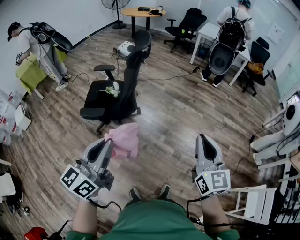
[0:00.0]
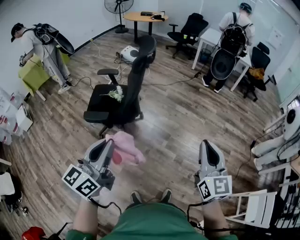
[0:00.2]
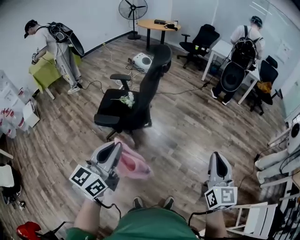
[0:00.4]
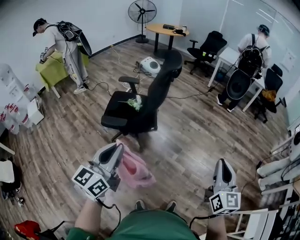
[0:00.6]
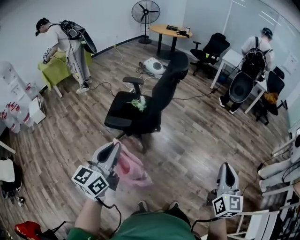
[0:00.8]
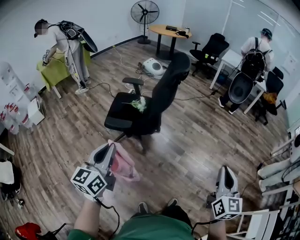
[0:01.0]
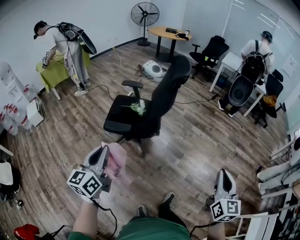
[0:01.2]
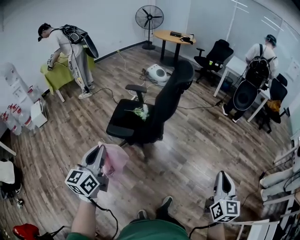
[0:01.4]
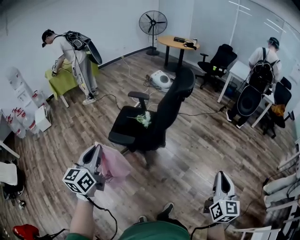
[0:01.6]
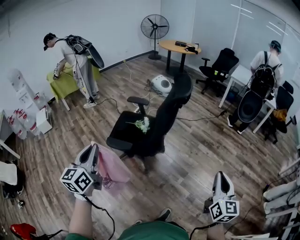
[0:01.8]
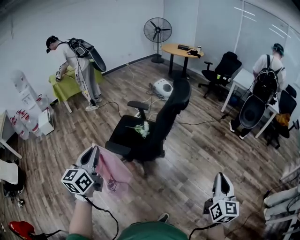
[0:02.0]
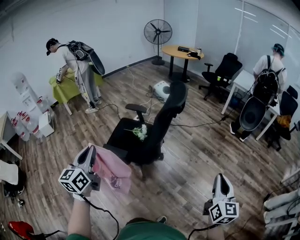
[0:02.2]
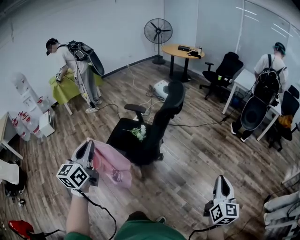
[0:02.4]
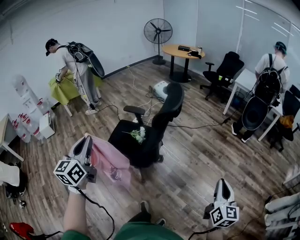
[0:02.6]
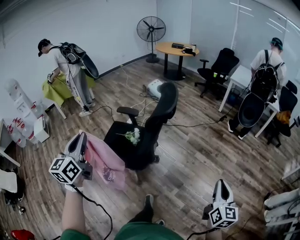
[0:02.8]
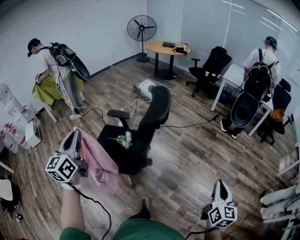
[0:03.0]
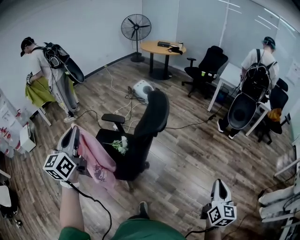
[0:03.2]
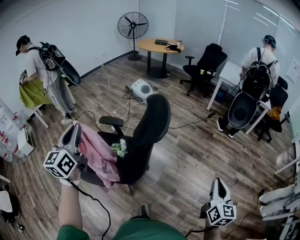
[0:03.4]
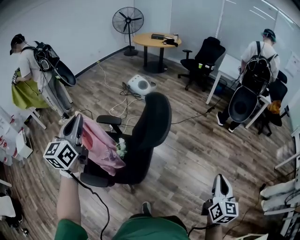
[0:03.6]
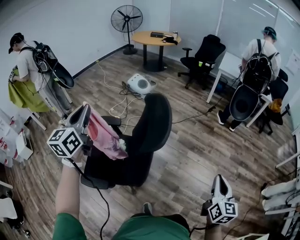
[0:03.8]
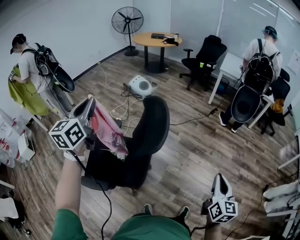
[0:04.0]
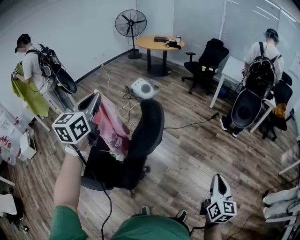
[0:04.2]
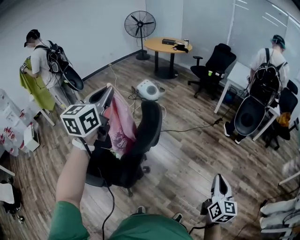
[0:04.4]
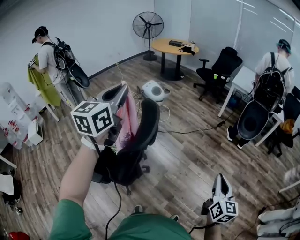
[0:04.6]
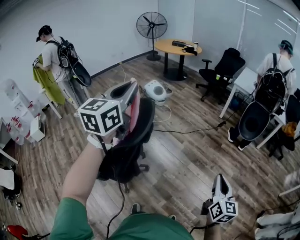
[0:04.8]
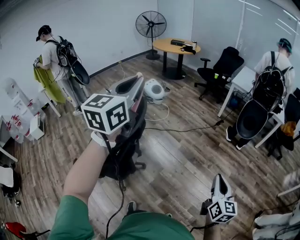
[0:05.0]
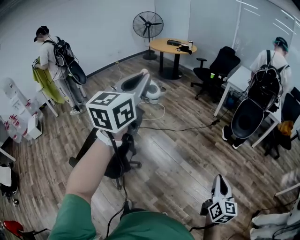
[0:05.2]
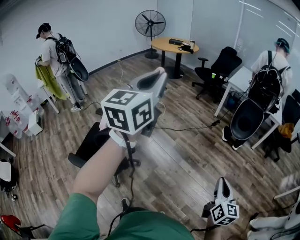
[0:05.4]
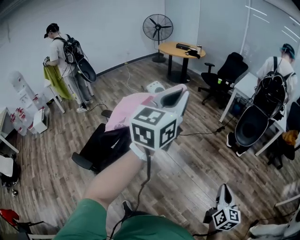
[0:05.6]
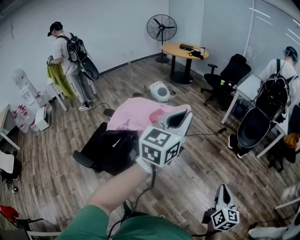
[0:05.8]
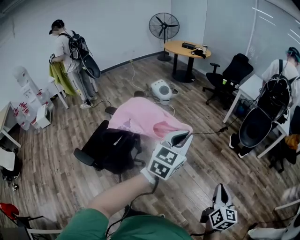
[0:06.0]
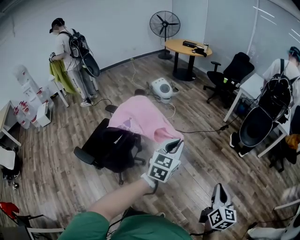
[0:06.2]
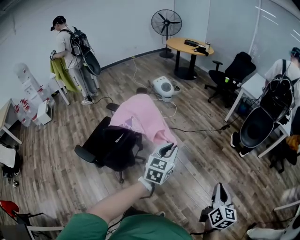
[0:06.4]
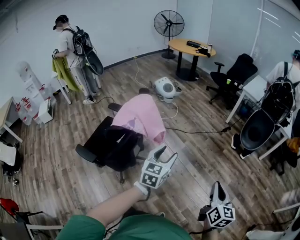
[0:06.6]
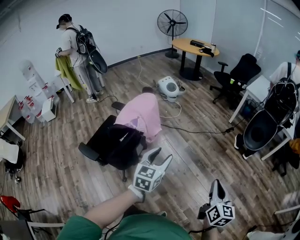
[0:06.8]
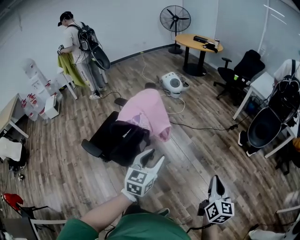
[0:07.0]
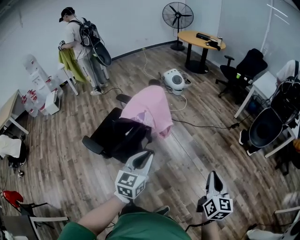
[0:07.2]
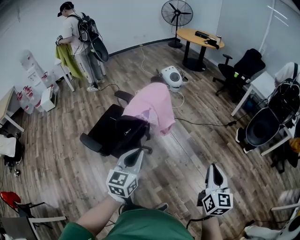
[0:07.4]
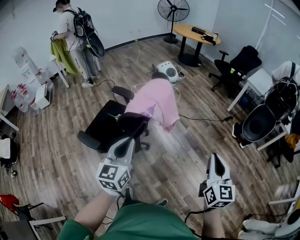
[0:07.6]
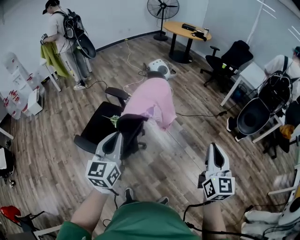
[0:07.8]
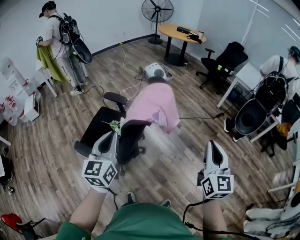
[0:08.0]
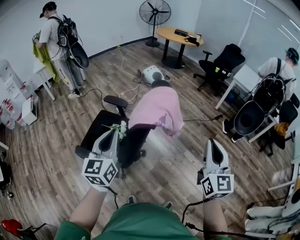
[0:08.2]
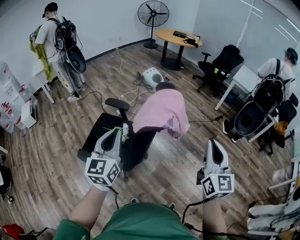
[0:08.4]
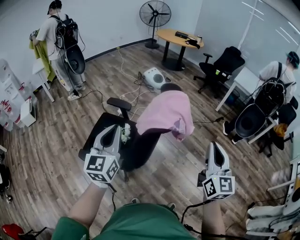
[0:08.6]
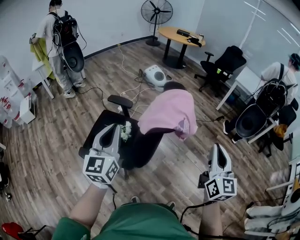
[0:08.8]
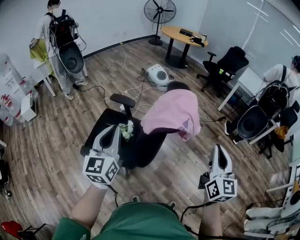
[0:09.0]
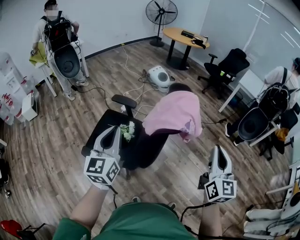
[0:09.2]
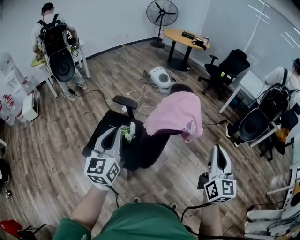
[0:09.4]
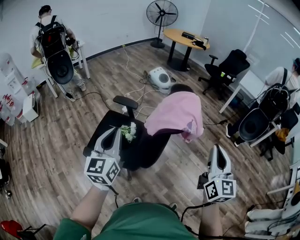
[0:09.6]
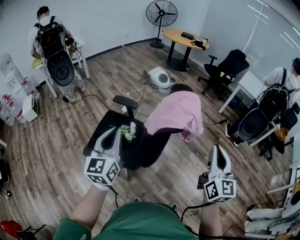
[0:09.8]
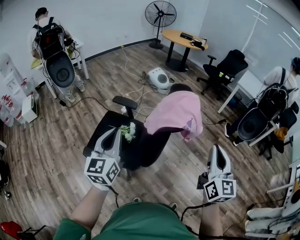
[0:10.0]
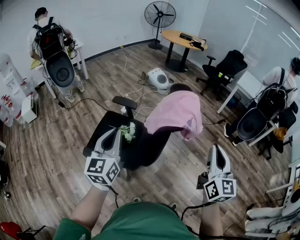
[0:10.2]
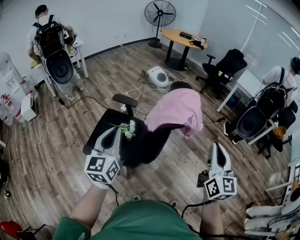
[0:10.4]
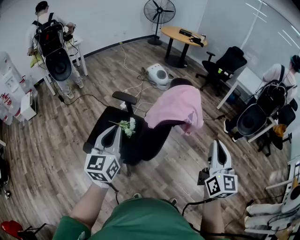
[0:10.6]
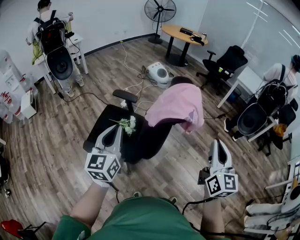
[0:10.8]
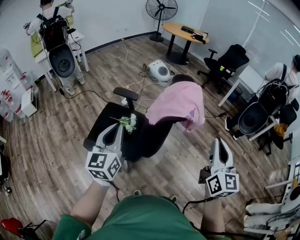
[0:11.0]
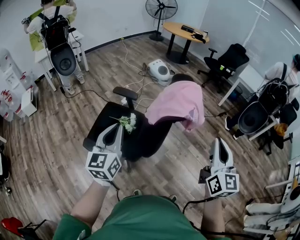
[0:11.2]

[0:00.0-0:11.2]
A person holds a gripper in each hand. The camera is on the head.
0:00.0 to 0:01.6: The right gripper ends up roughly 10 cm from where it was. The left gripper travels to the left by some 25 cm, and rotates approximately 30 degrees.
0:01.6 to 0:03.2: The left gripper travels forward by roughly 35 cm. Meanwhile the right gripper moves forward and to the right, about 30 cm.
0:03.2 to 0:04.8: The right gripper moves forward and to the right, approximately 20 cm; the left gripper heads to the right and forward, covering approximately 40 cm.
0:04.8 to 0:06.4: The right gripper moves to the right, some 10 cm, while the left gripper heads downward and to the right, covering about 40 cm, and changes its angle by about 20 degrees.
0:06.4 to 0:08.0: The right gripper shifts roughly 30 cm to the left and upward, and changes its angle by roughly 30 degrees, while the left gripper shifts roughly 40 cm to the left, rotates roughly 20 degrees, and opens, then closes again.
0:08.0 to 0:09.6: Both grippers move to the left, some 15 cm.
0:09.6 to 0:11.2: The grippers make only small movements.

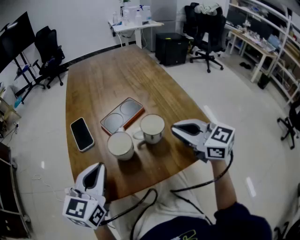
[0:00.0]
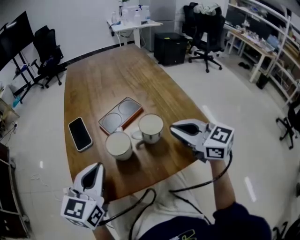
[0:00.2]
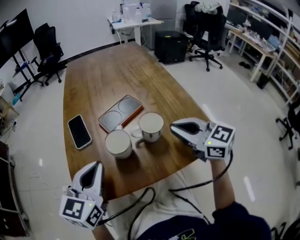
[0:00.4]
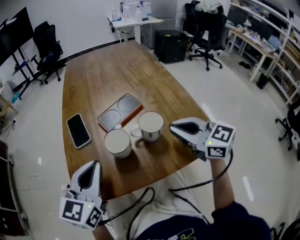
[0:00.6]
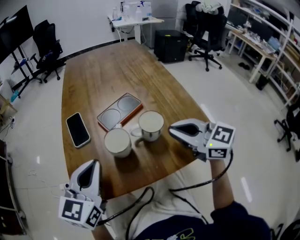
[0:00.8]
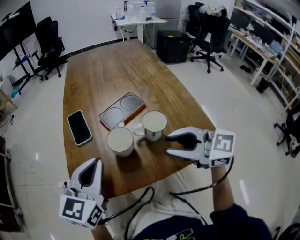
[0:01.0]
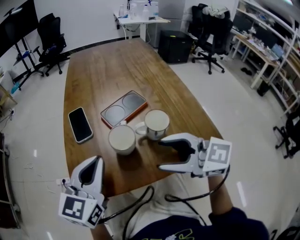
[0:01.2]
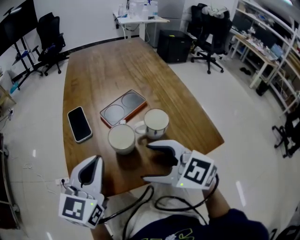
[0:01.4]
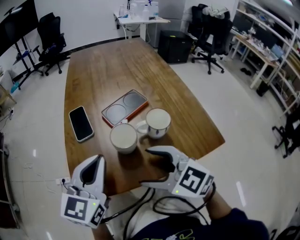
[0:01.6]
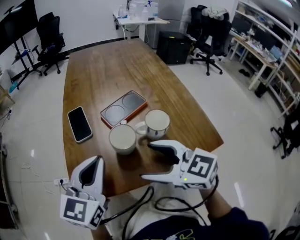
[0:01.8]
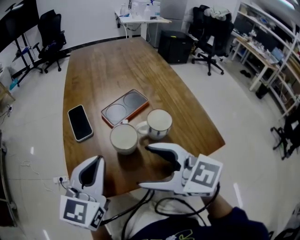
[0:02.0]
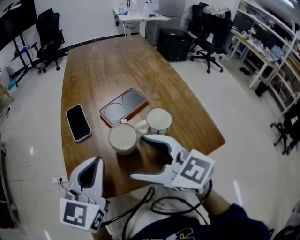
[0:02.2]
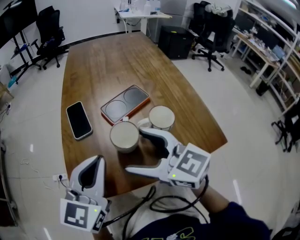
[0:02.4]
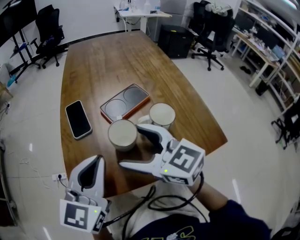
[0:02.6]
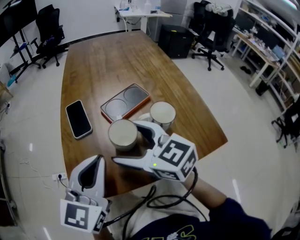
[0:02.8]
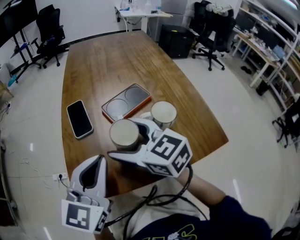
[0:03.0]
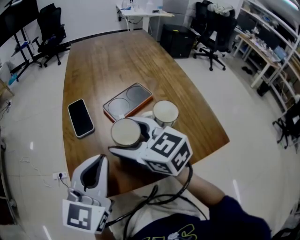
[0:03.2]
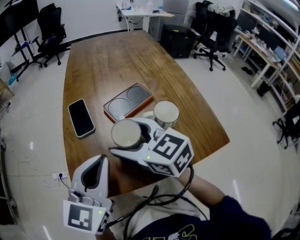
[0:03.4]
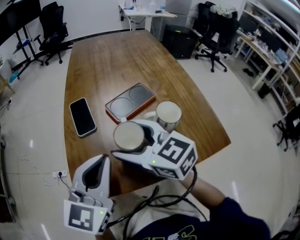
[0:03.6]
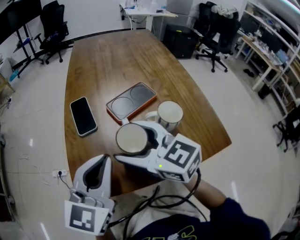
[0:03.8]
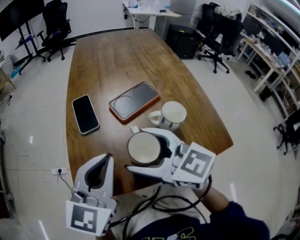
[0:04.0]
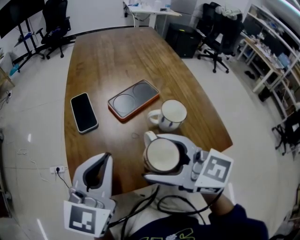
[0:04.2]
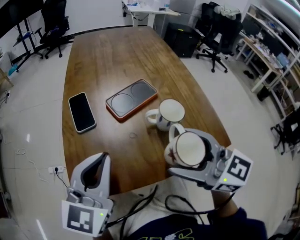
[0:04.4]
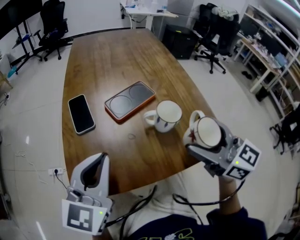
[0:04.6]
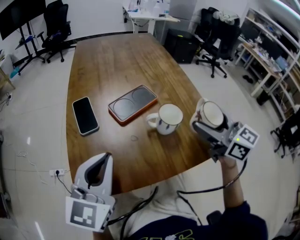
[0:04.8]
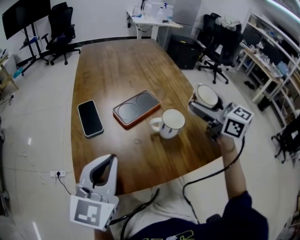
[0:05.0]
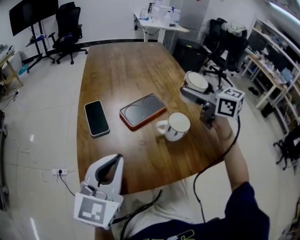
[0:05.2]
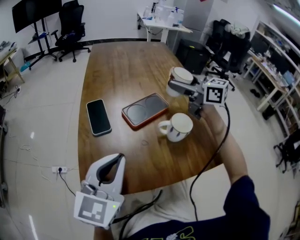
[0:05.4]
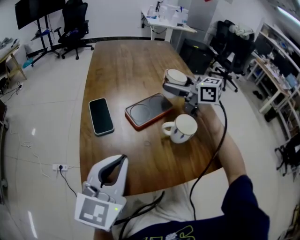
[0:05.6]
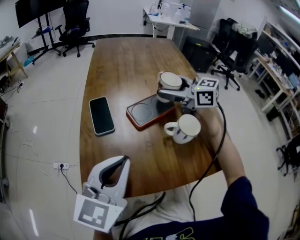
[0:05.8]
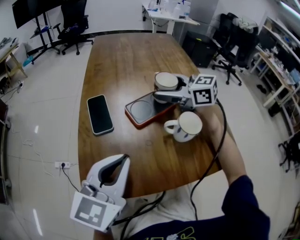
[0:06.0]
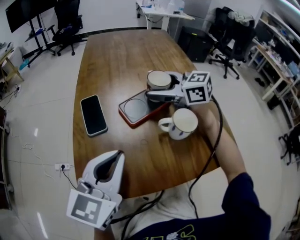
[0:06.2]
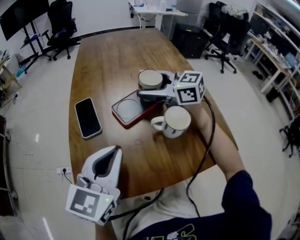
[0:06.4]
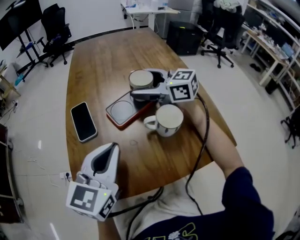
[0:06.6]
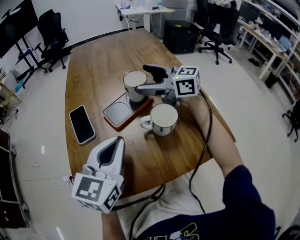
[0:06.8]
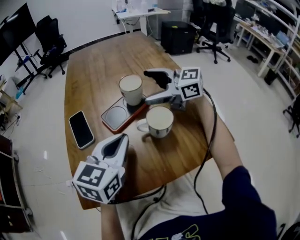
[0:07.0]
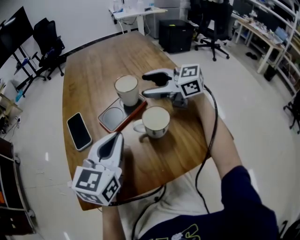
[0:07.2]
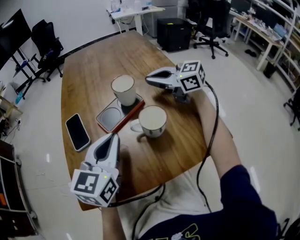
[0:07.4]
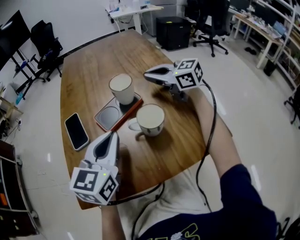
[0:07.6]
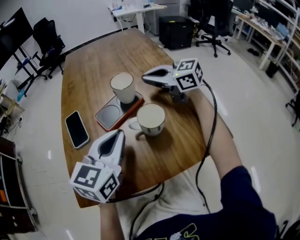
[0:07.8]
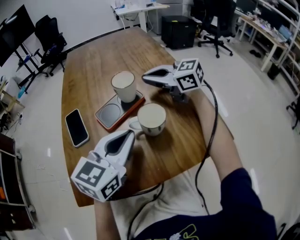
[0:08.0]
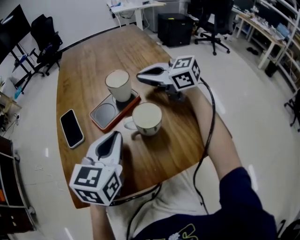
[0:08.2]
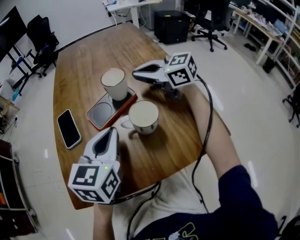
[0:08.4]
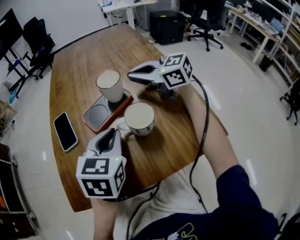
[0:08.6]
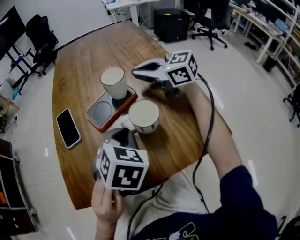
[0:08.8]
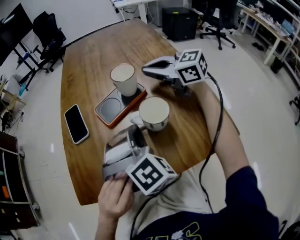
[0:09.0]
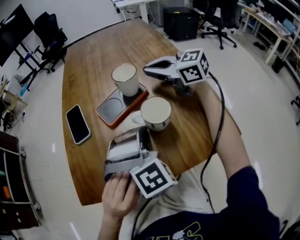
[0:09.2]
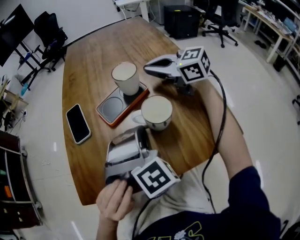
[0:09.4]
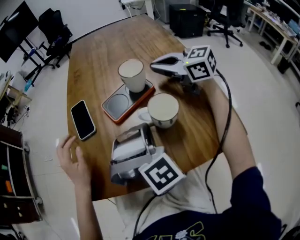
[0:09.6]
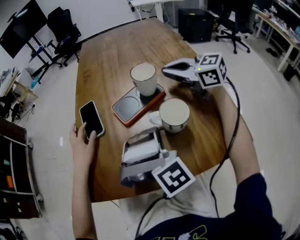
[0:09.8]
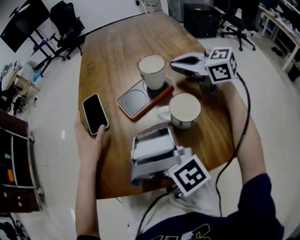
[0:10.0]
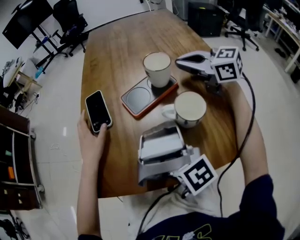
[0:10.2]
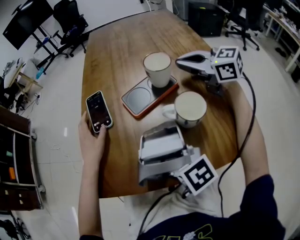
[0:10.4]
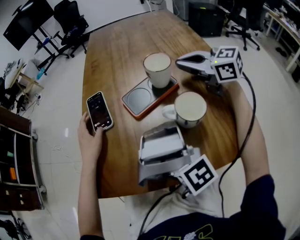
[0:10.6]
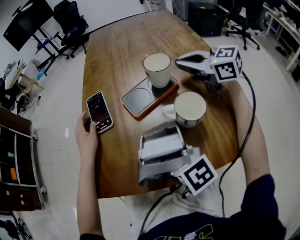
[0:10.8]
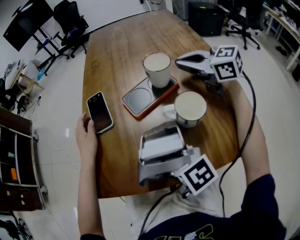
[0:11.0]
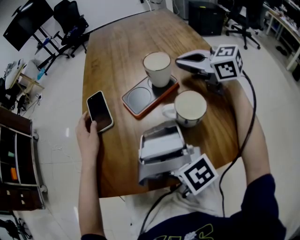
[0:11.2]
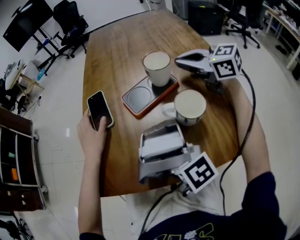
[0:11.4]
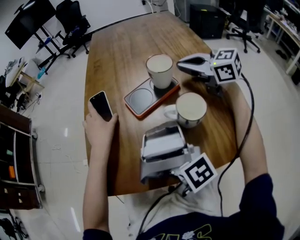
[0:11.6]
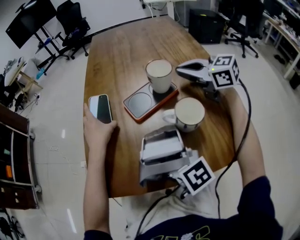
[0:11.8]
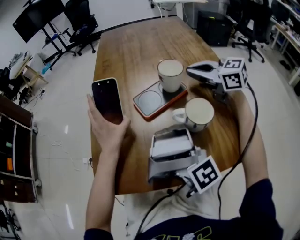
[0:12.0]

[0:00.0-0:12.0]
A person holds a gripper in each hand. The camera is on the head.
0:00.0 to 0:01.6: The right gripper shifts approximately 20 cm to the left and backward, changes its angle by roughly 30 degrees, and opens up.
0:01.6 to 0:03.0: The right gripper moves forward, approximately 10 cm.
0:03.0 to 0:04.4: The right gripper is displaced backward, to the right and upward by approximately 15 cm.
0:04.4 to 0:06.0: The right gripper goes roughly 25 cm forward.
0:06.0 to 0:07.6: The left gripper shifts approximately 10 cm to the right and forward. Meanwhile the right gripper is displaced to the right by about 10 cm, and closes up.
0:07.6 to 0:09.0: The left gripper goes some 10 cm downward and to the right, and turns by approximately 70 degrees.
0:09.0 to 0:10.4: The left gripper changes its angle by some 30 degrees.
0:10.4 to 0:12.0: The two grippers keep their place.

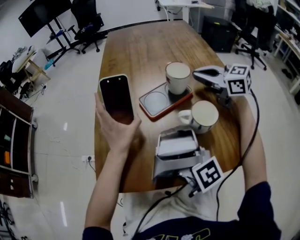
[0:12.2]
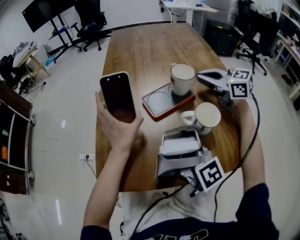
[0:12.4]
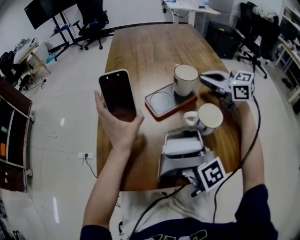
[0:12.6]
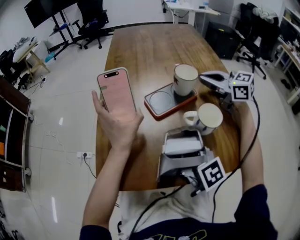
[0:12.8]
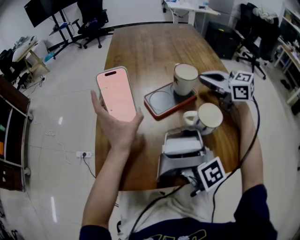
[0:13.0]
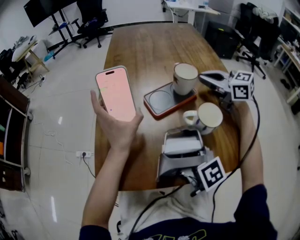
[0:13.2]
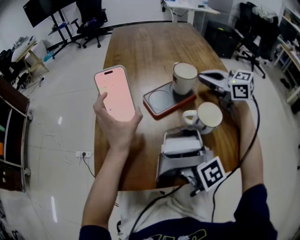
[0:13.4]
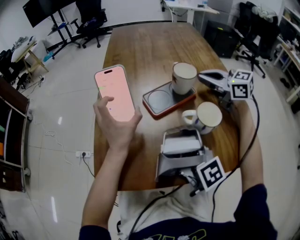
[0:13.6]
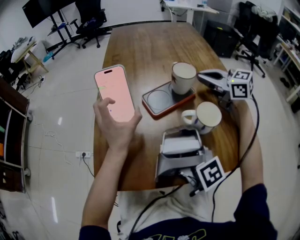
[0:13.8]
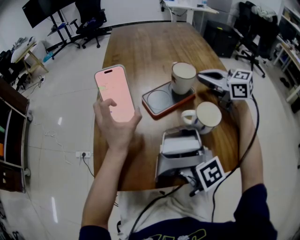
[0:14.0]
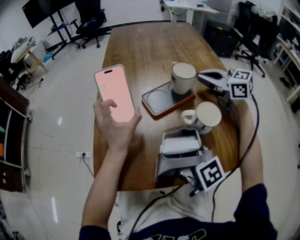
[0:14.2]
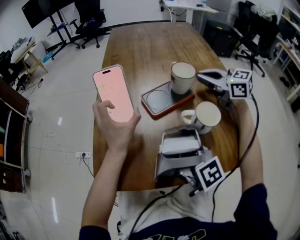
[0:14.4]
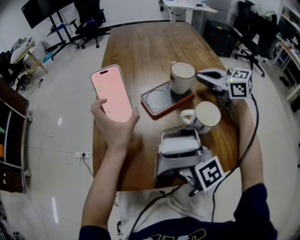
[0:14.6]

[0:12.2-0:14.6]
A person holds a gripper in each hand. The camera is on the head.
0:12.2 to 0:14.6: Both grippers stay put.
